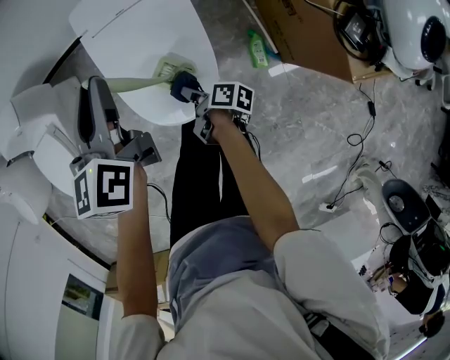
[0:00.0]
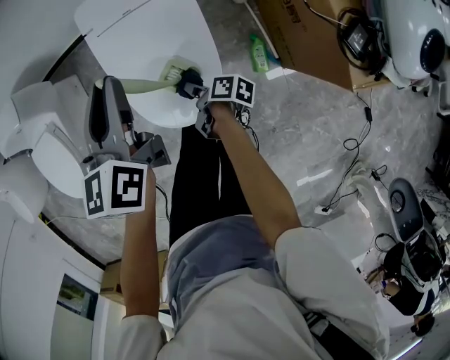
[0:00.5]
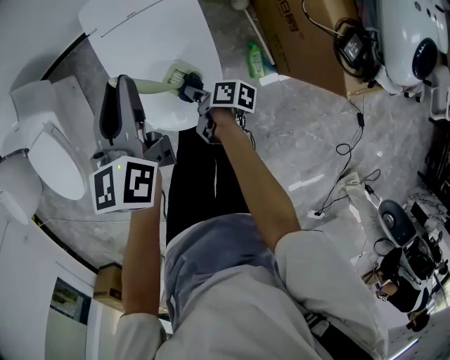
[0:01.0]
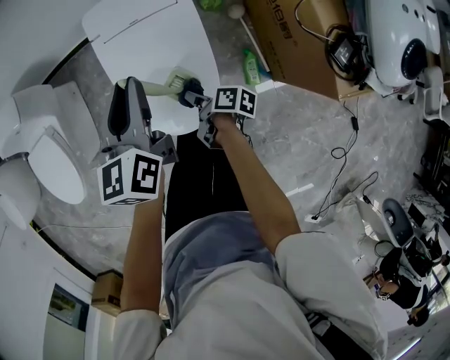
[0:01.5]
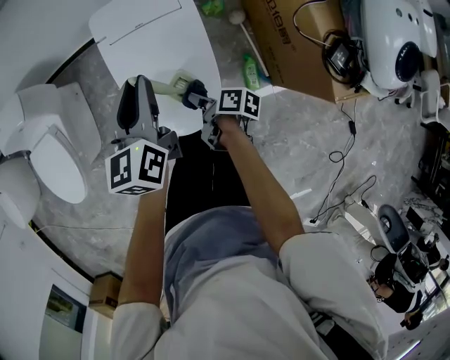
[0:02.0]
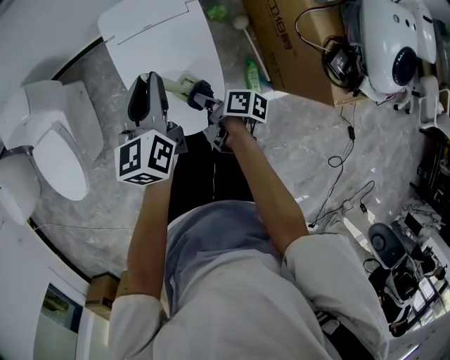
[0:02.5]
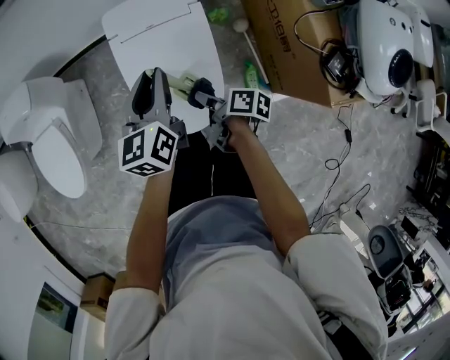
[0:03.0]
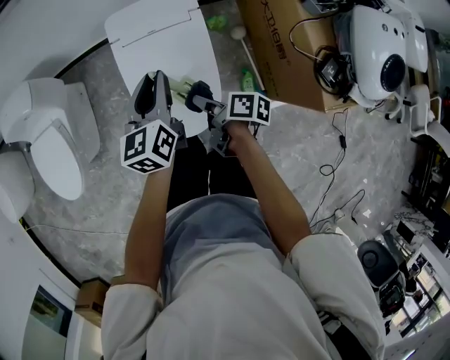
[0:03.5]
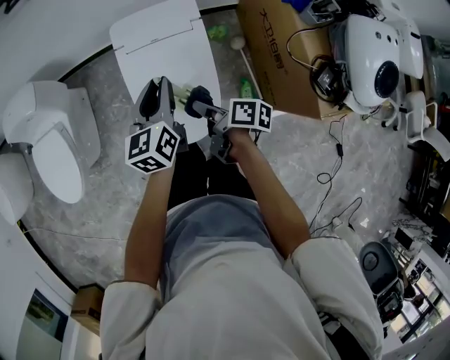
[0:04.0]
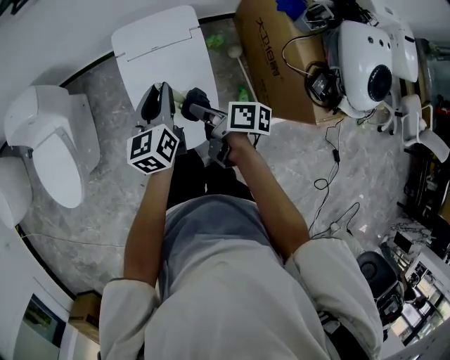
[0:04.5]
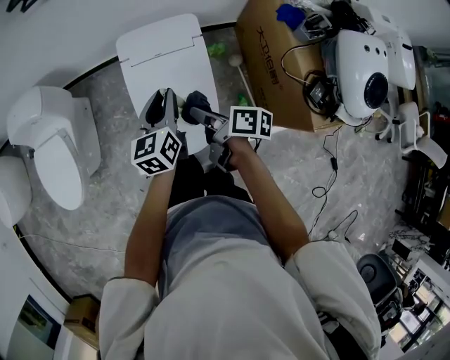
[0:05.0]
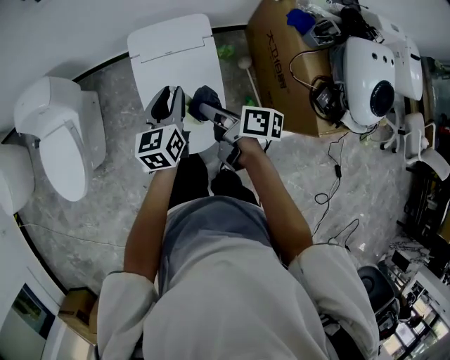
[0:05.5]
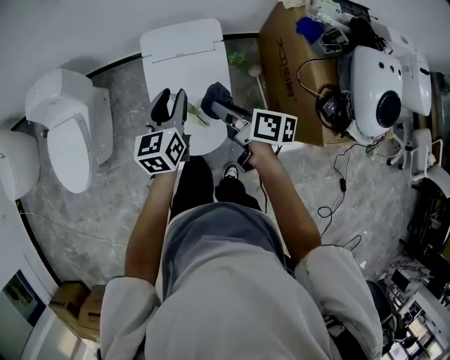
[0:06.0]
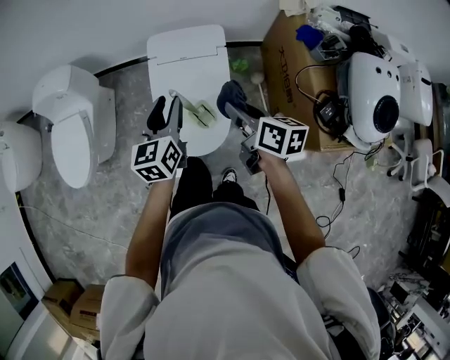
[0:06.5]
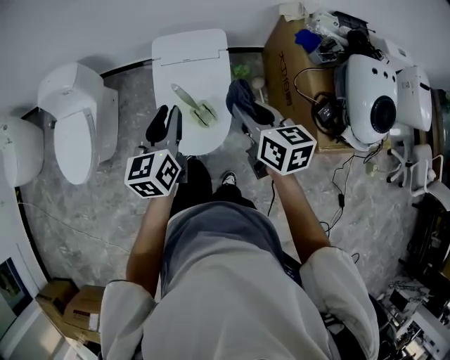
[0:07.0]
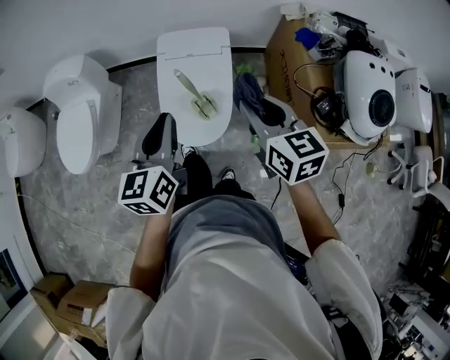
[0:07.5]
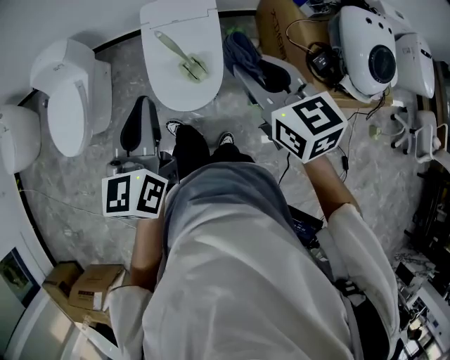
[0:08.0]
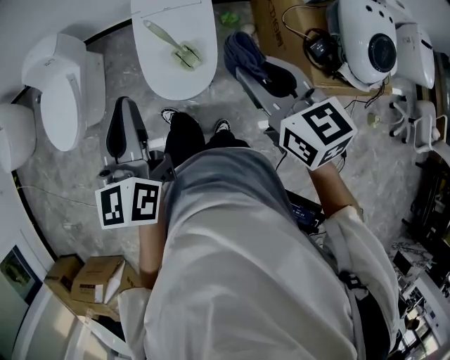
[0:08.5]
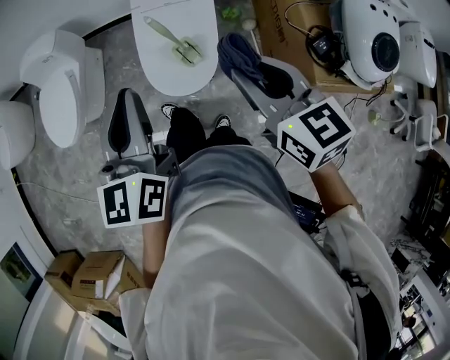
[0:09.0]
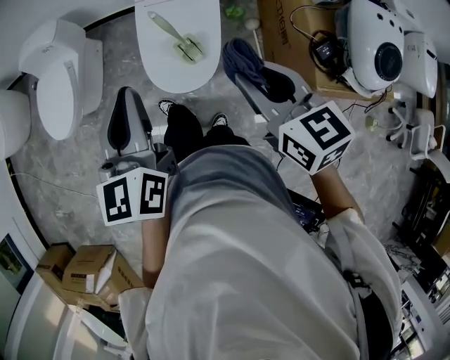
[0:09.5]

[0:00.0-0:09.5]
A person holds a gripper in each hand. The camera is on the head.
0:05.5 to 0:07.5: The left gripper changes place by roughly 25 cm.
0:07.5 to 0:09.5: The left gripper changes place by about 5 cm.

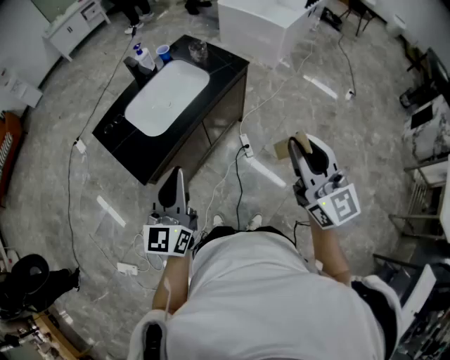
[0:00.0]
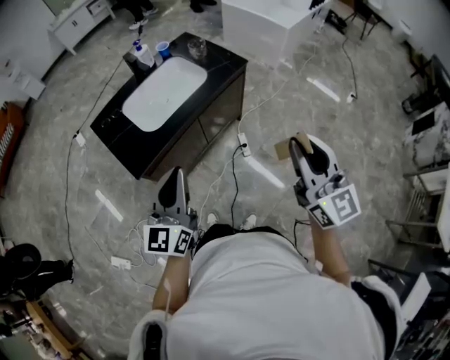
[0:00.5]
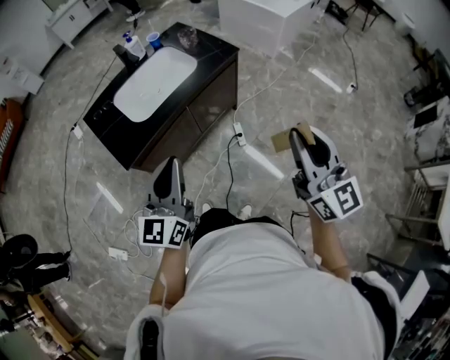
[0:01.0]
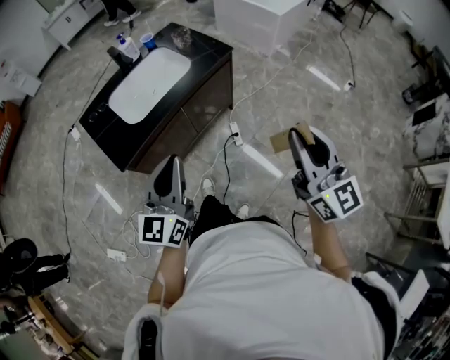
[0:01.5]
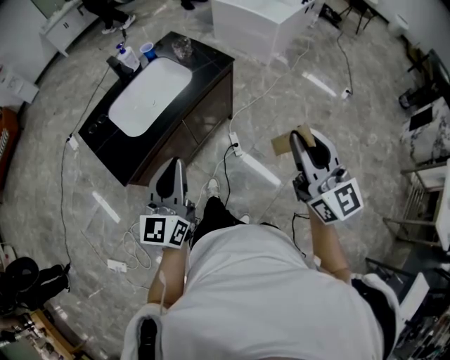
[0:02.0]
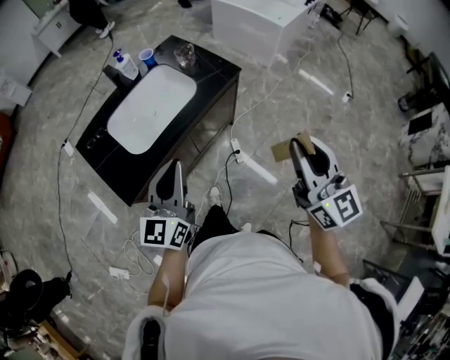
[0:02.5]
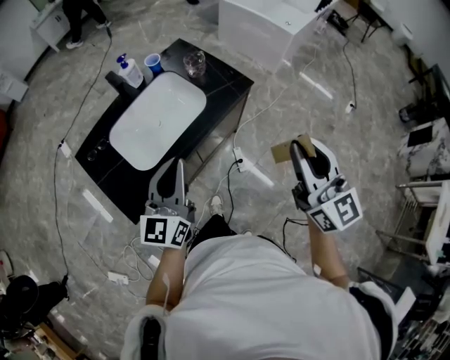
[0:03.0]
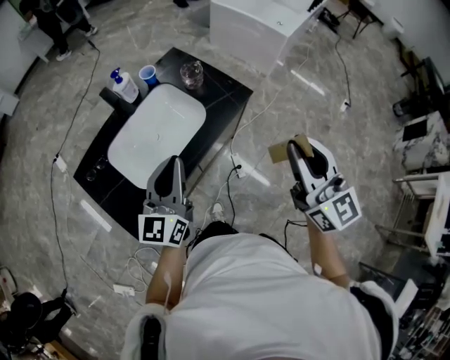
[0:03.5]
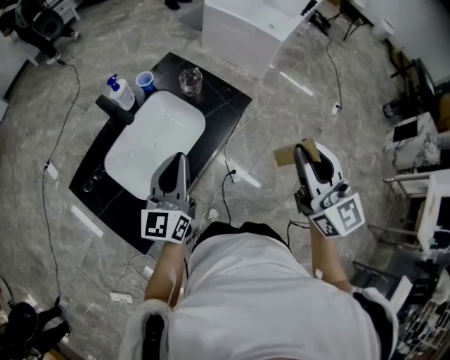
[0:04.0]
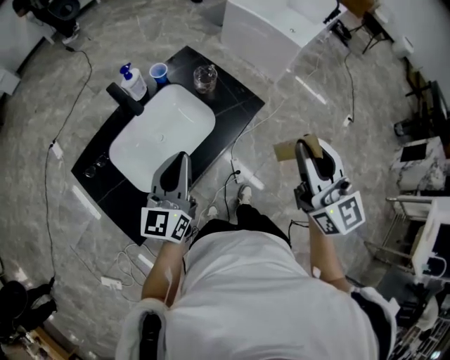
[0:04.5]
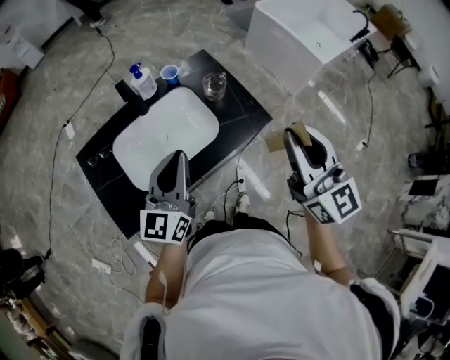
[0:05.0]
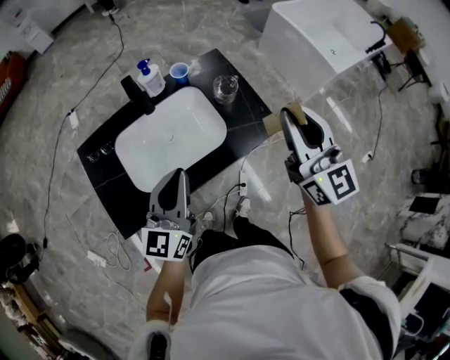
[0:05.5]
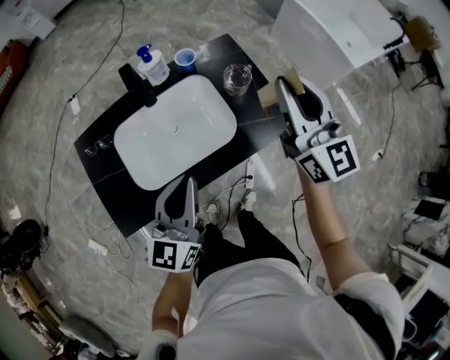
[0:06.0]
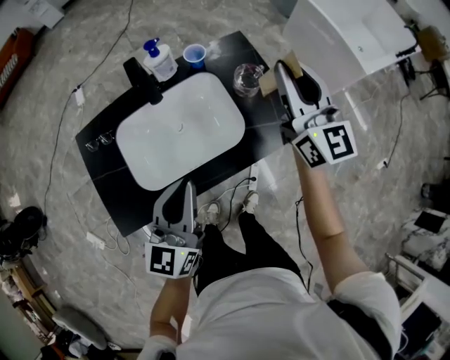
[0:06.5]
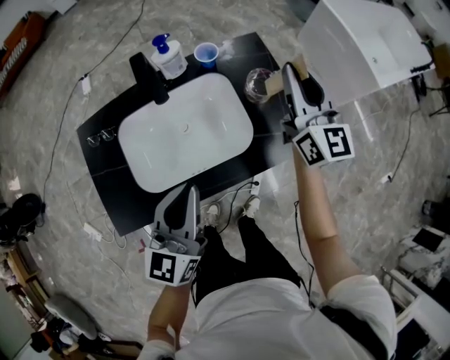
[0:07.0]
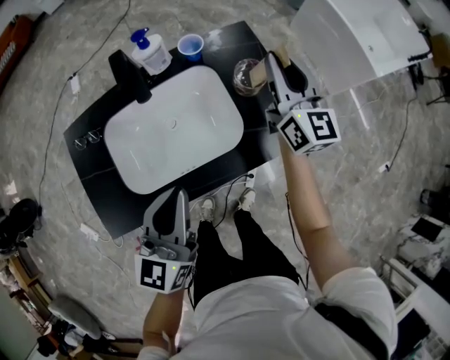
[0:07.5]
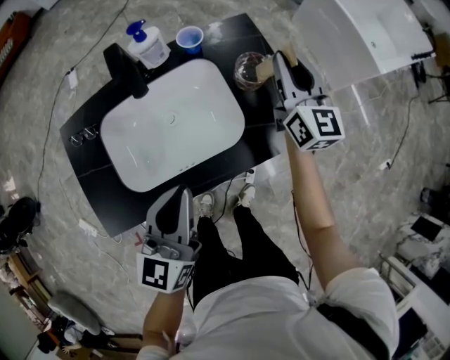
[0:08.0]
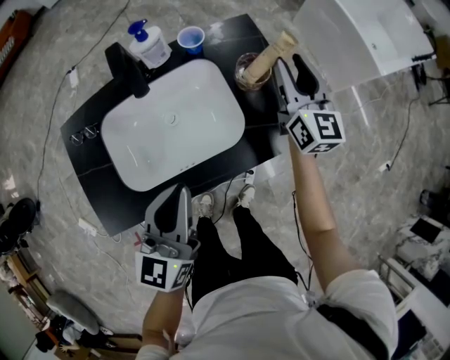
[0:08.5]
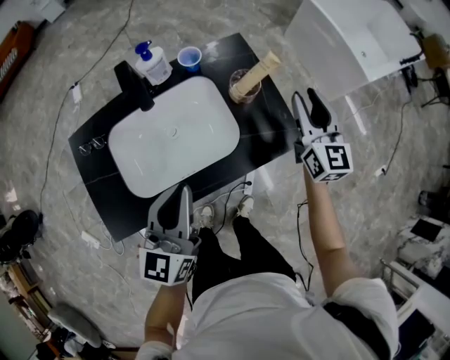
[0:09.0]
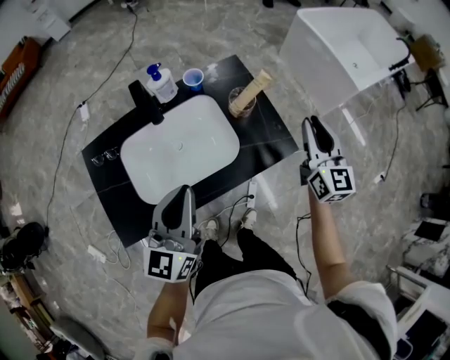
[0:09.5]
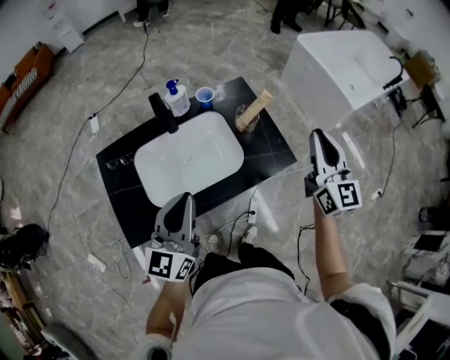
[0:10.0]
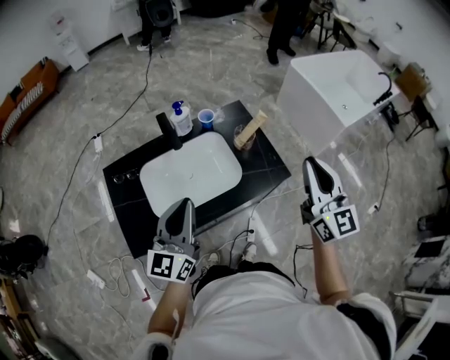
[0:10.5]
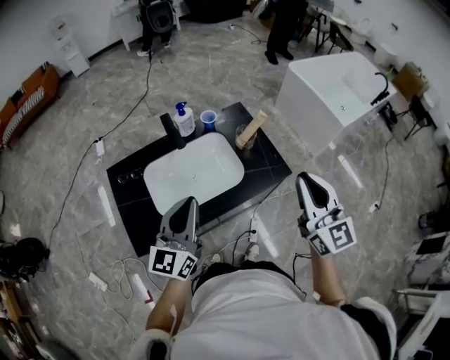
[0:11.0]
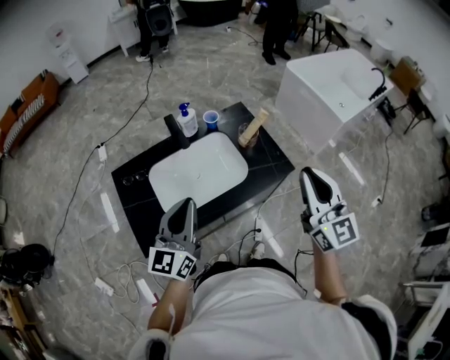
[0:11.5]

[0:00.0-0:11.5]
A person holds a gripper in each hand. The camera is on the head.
0:00.0 to 0:02.0: The grippers both shift to the right by about 10 cm.
0:02.0 to 0:04.0: The left gripper travels forward by about 30 cm; the right gripper travels forward and to the left by roughly 25 cm.
0:04.0 to 0:06.0: The right gripper heads forward, covering roughly 30 cm, and swivels roughly 30 degrees. The left gripper changes its angle by approximately 20 degrees.
0:06.0 to 0:07.5: The right gripper travels forward and downward by approximately 15 cm.
0:07.5 to 0:09.5: The left gripper shifts roughly 5 cm upward, while the right gripper is displaced to the right and backward by about 15 cm.
0:09.5 to 0:11.5: The left gripper travels backward, to the left and upward by roughly 10 cm. The right gripper is displaced backward, upward and to the left by approximately 25 cm.

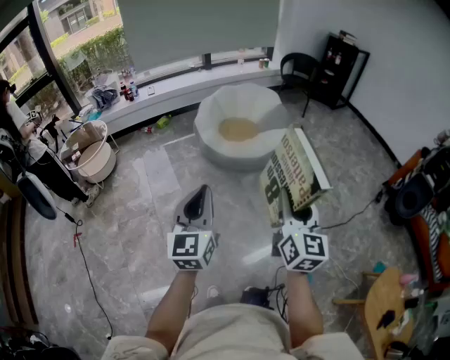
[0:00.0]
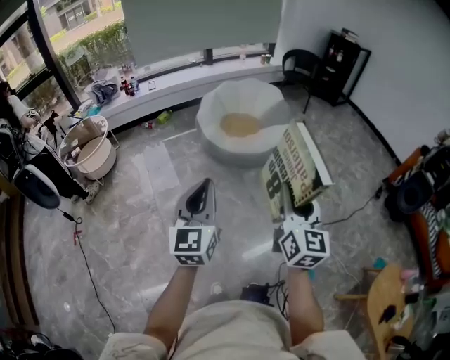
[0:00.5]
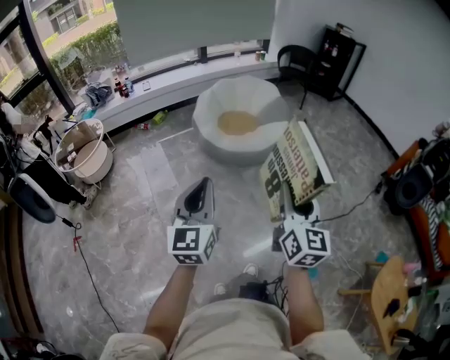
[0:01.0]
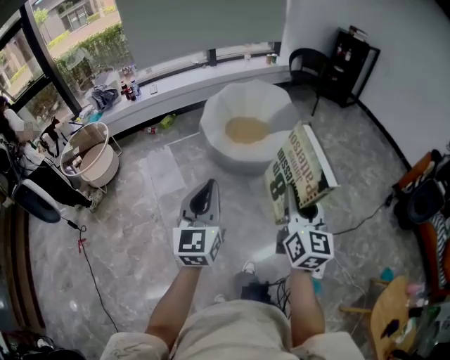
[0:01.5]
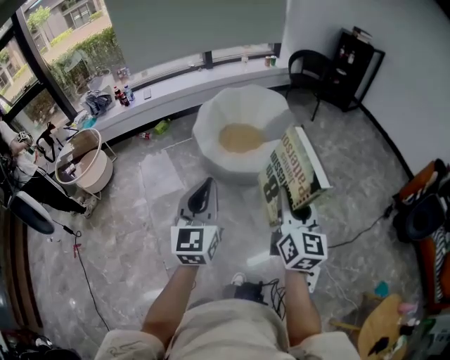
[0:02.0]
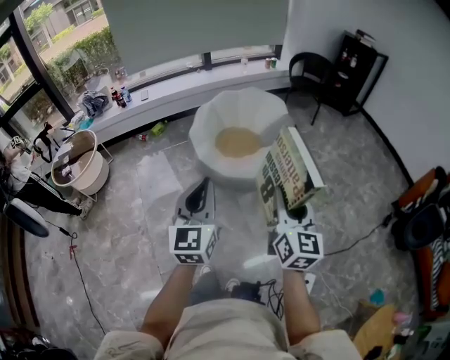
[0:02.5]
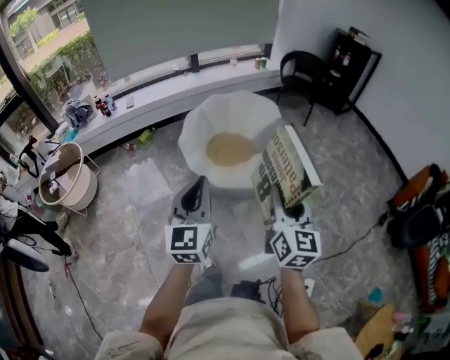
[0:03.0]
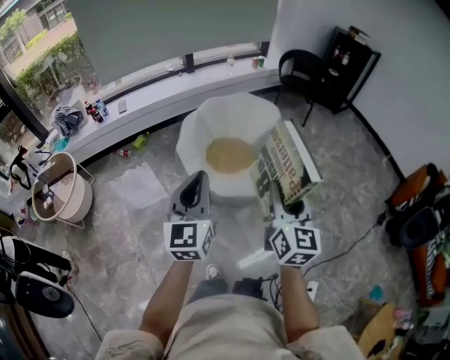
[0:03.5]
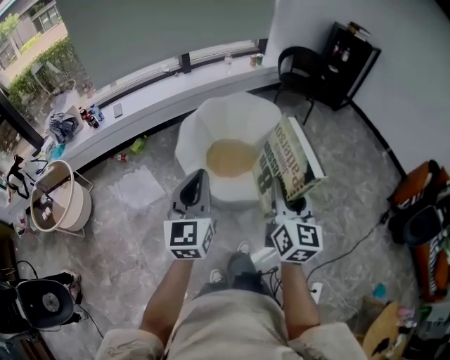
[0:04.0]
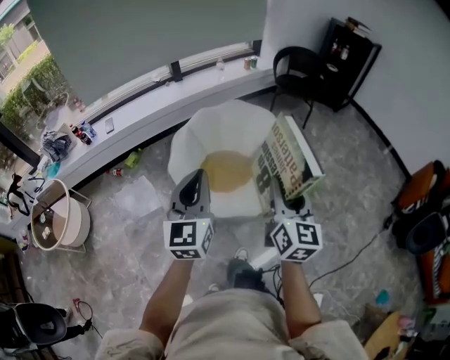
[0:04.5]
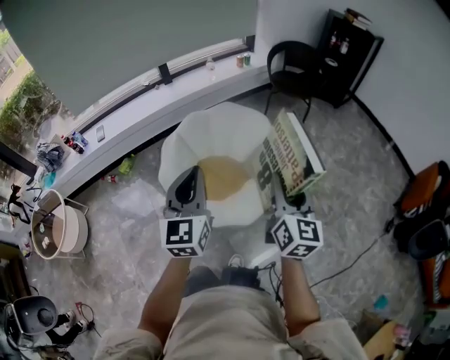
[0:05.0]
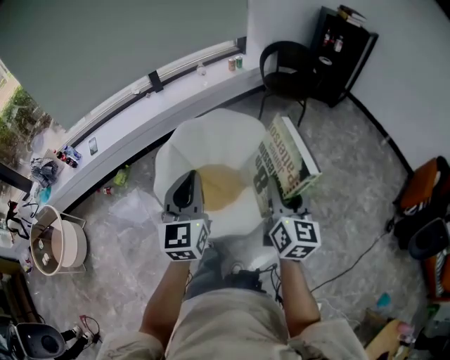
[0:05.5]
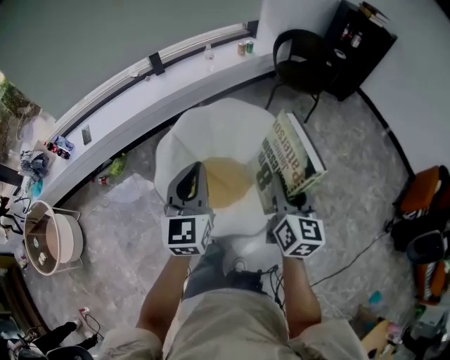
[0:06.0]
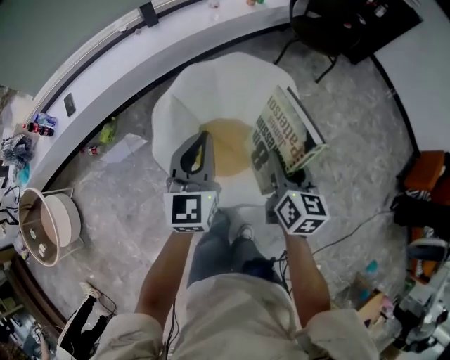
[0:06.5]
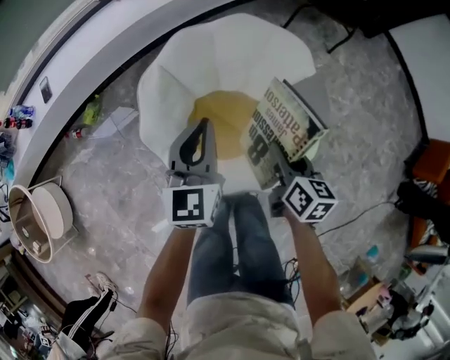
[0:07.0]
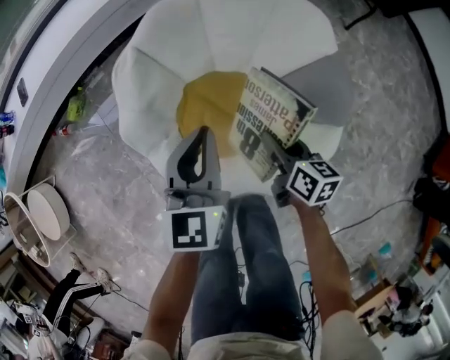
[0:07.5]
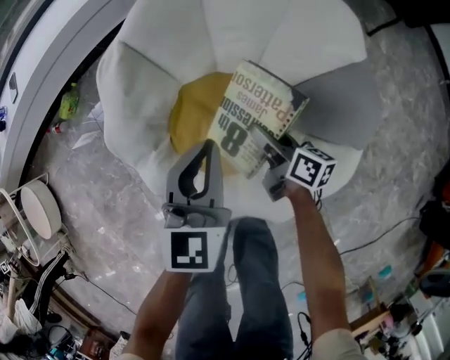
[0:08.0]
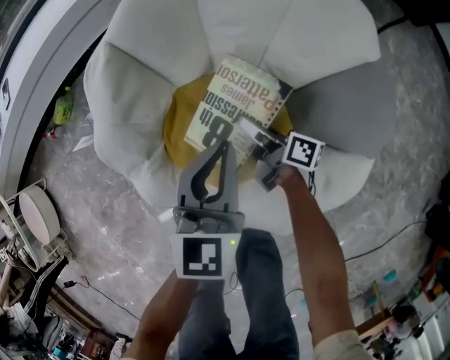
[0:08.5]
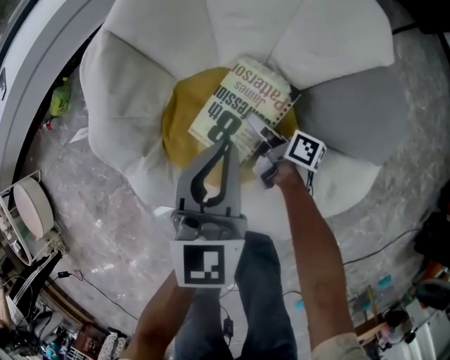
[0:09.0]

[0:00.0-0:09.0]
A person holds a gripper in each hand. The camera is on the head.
0:00.0 to 0:02.0: Both grippers move forward, about 25 cm.
0:02.0 to 0:04.5: Both grippers are carried forward, roughly 40 cm.
0:04.5 to 0:07.0: Both grippers move forward and downward, approximately 50 cm. The right gripper points its fingers some 30 degrees further downward.
0:07.0 to 0:09.0: The left gripper goes roughly 30 cm downward. Meanwhile the right gripper is displaced downward by some 50 cm, and turns by approximately 50 degrees.
